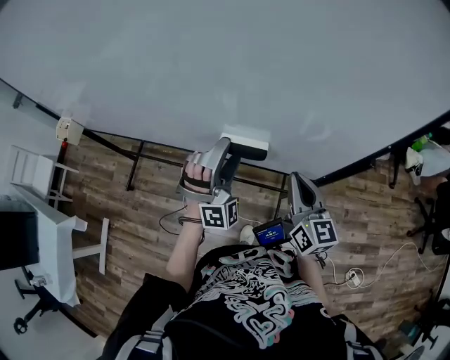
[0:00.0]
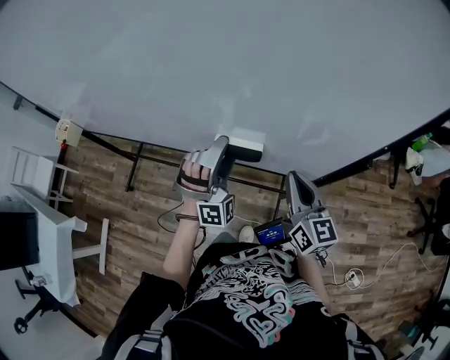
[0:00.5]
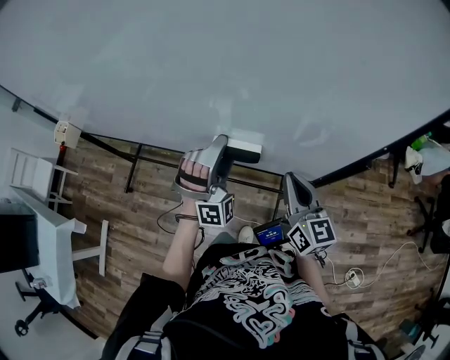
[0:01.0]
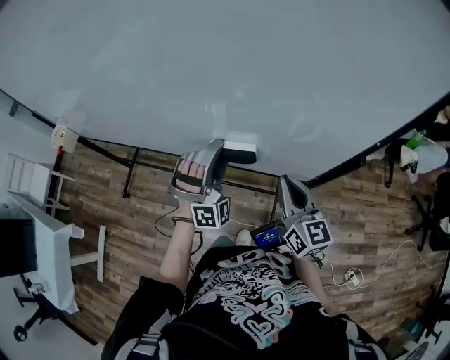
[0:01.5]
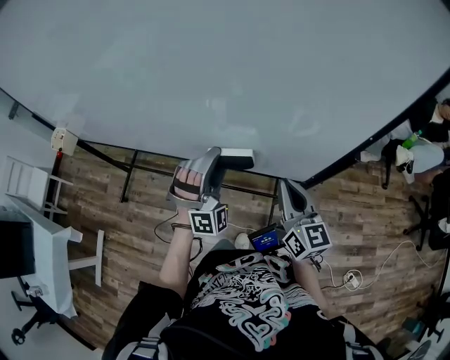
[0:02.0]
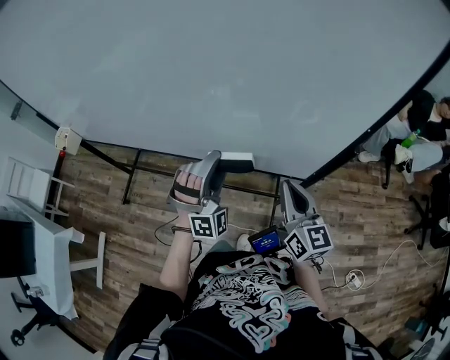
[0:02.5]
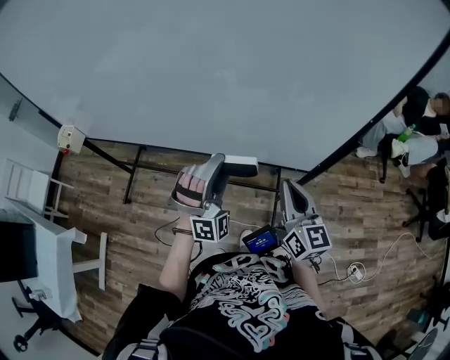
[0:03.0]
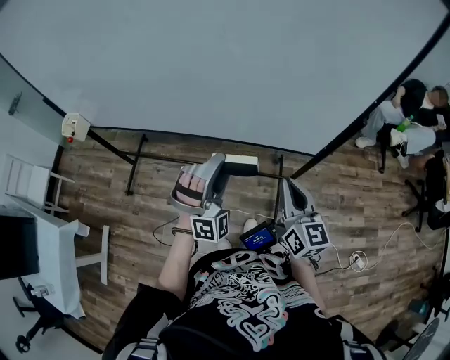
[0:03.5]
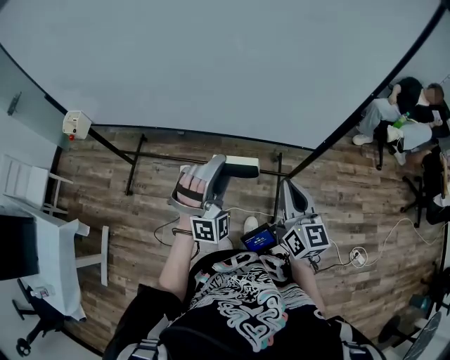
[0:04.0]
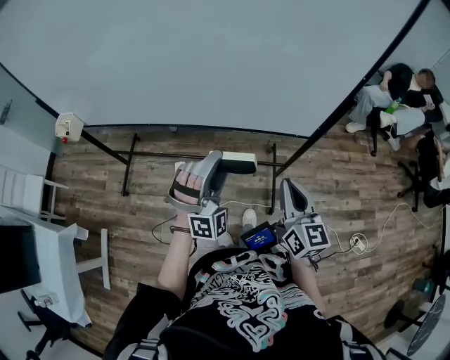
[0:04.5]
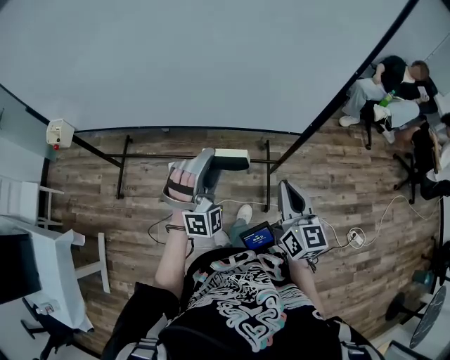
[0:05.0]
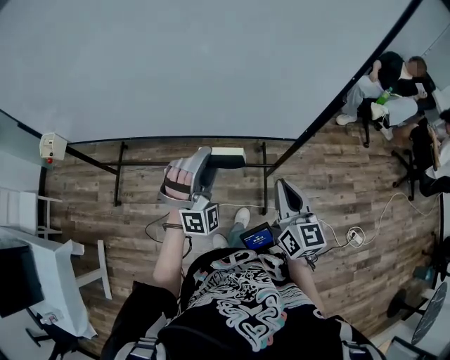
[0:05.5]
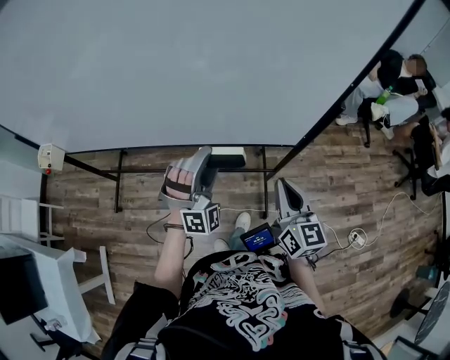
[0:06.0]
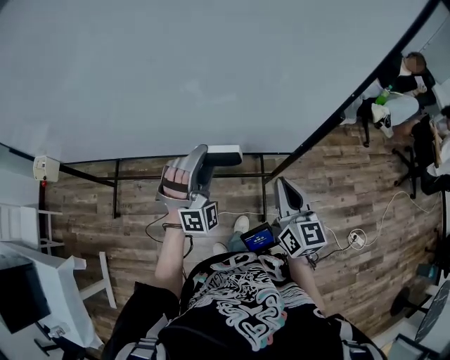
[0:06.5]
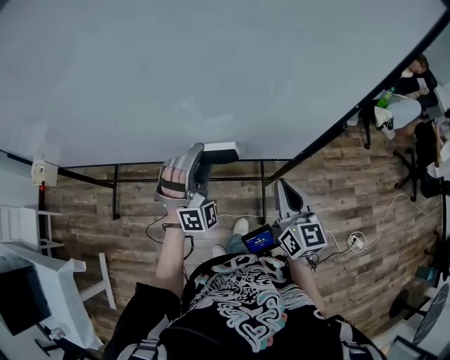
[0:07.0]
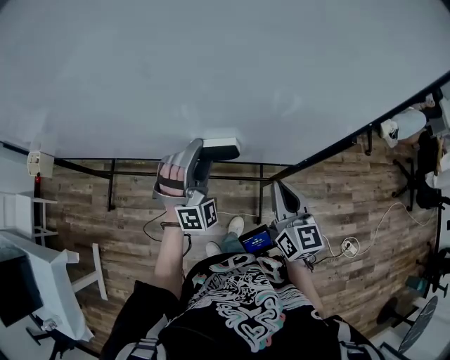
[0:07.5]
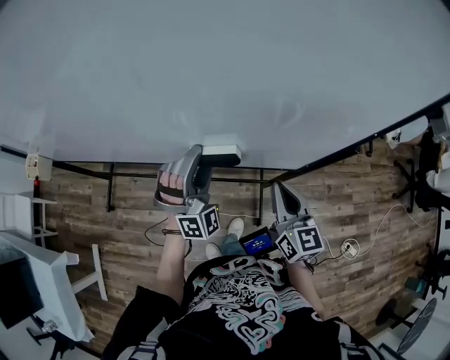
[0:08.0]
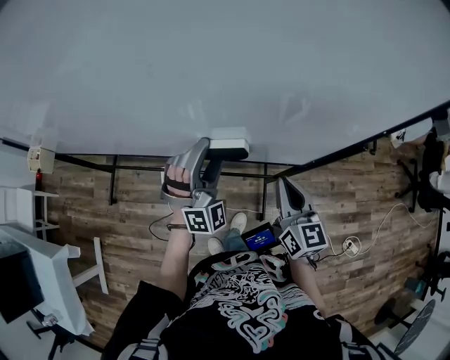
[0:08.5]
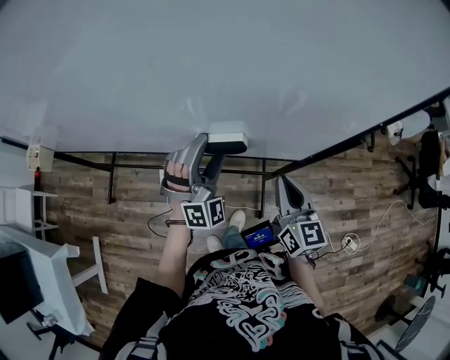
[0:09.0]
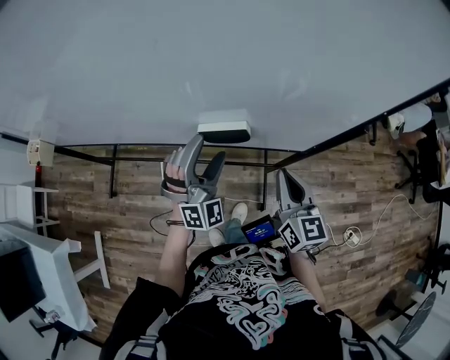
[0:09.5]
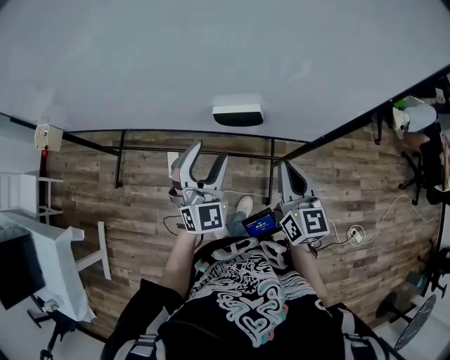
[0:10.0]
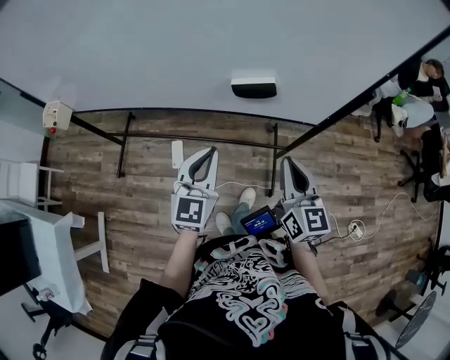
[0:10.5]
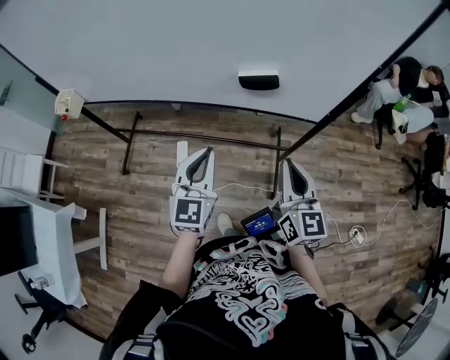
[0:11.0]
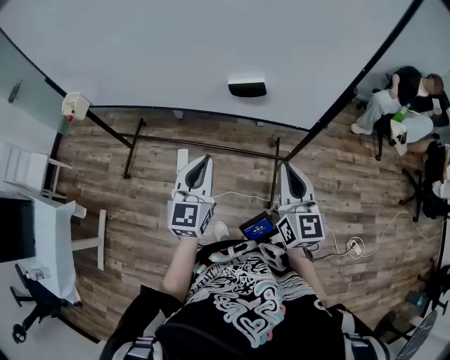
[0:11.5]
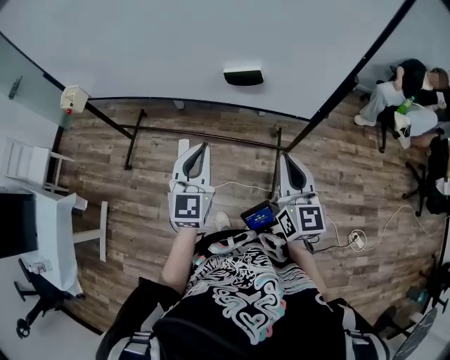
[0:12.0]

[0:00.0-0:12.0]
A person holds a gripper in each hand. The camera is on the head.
0:00.0 to 0:02.0: There are only small adjustments of the grippers.
0:02.0 to 0:04.0: The grippers both shift backward and to the left by roughly 15 cm.
0:04.0 to 0:06.0: The left gripper goes approximately 10 cm forward. The right gripper ends up roughly 5 cm from where it was.
0:06.0 to 0:08.0: Both grippers travel together forward, roughly 10 cm.
0:08.0 to 0:10.0: The right gripper moves about 5 cm, while the left gripper is displaced backward by approximately 10 cm, and turns by approximately 30 degrees.
0:10.0 to 0:12.0: The left gripper is displaced backward by about 15 cm, swivels about 30 degrees, and closes, while the right gripper travels backward and upward by roughly 15 cm.

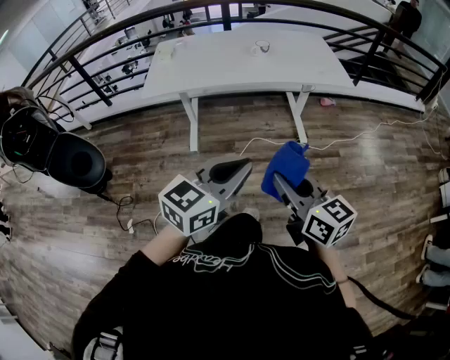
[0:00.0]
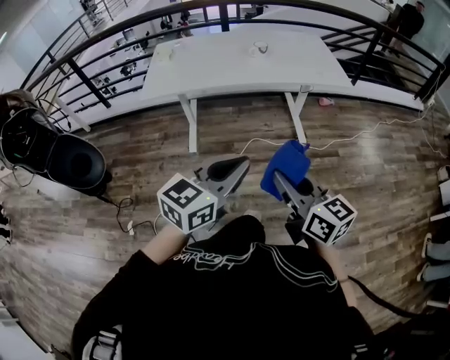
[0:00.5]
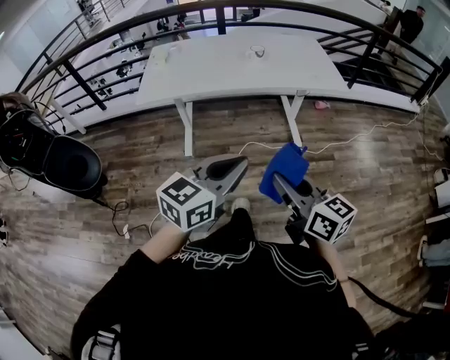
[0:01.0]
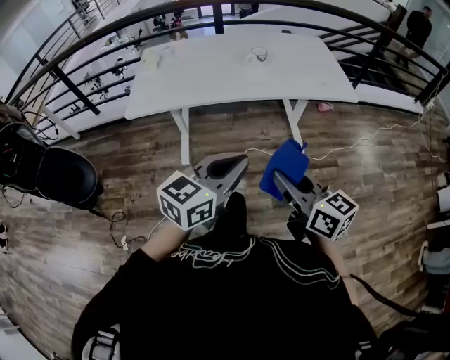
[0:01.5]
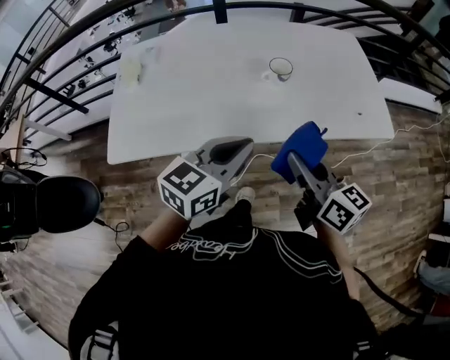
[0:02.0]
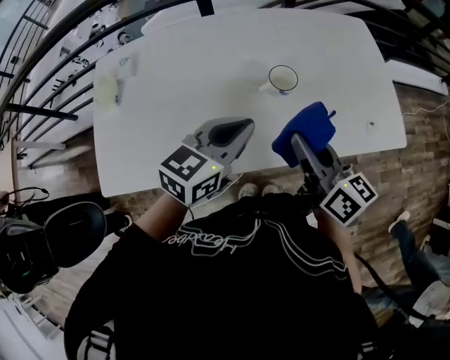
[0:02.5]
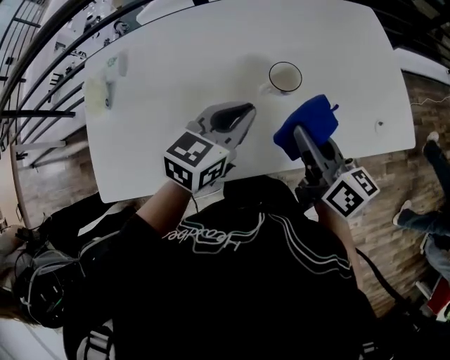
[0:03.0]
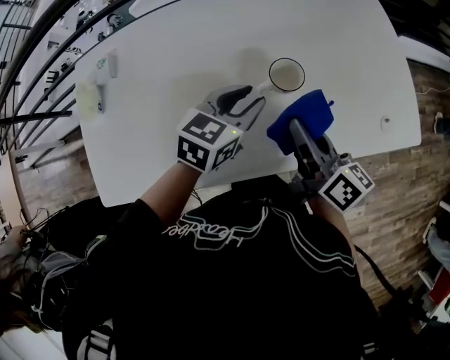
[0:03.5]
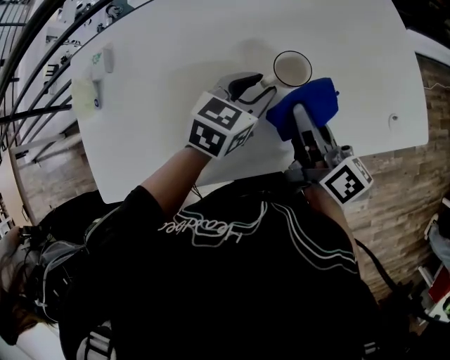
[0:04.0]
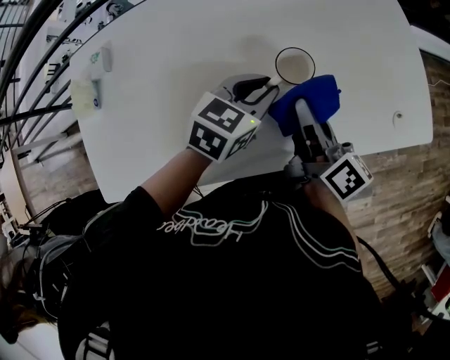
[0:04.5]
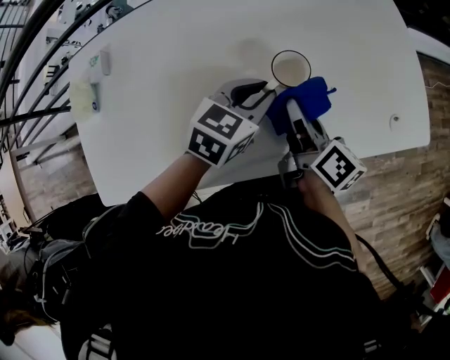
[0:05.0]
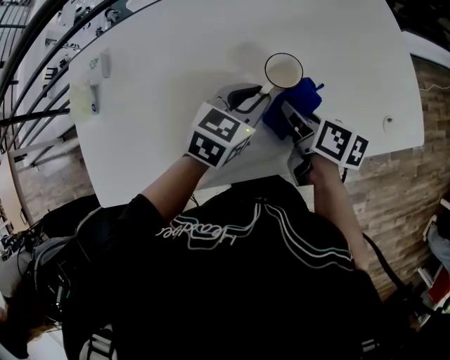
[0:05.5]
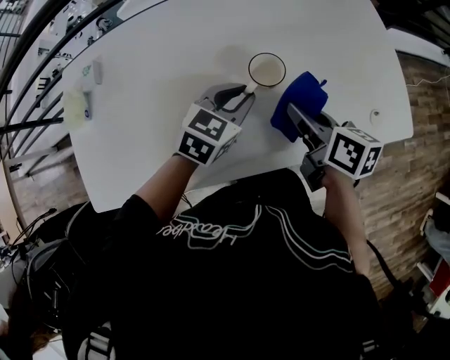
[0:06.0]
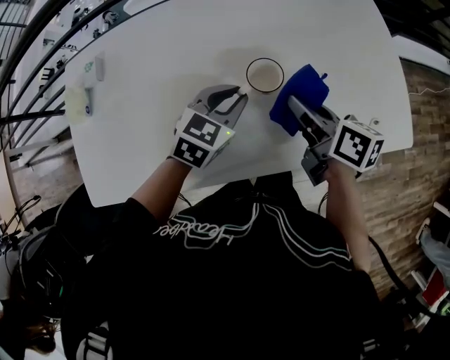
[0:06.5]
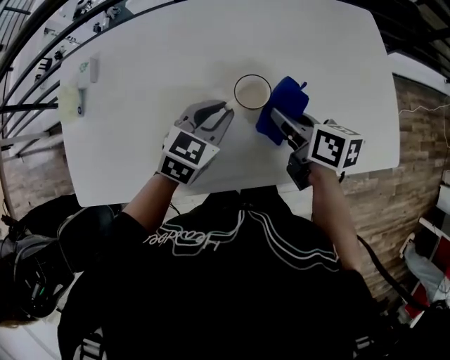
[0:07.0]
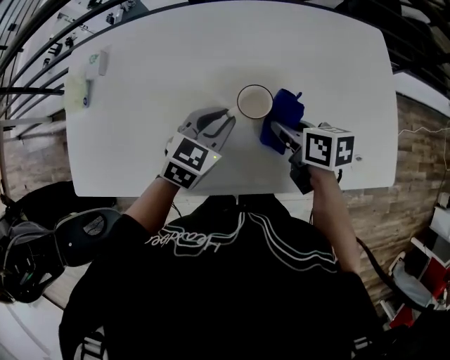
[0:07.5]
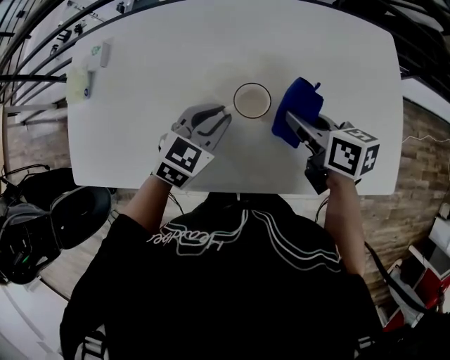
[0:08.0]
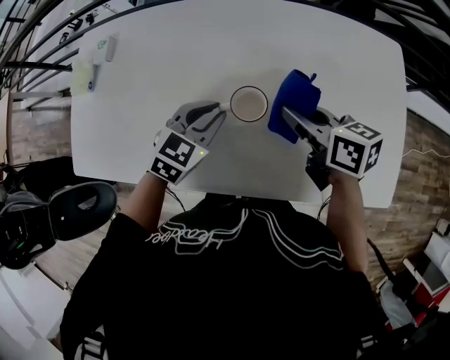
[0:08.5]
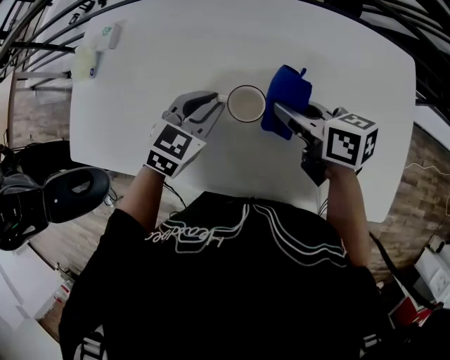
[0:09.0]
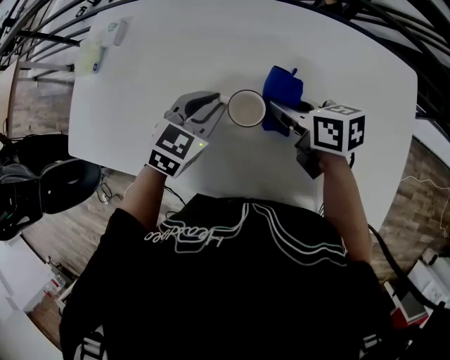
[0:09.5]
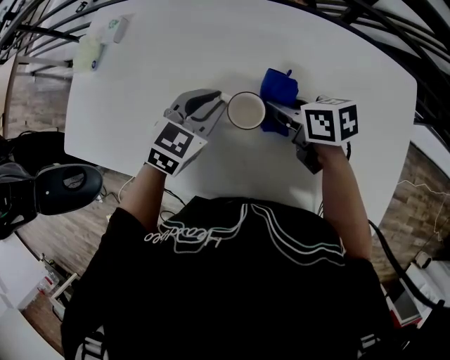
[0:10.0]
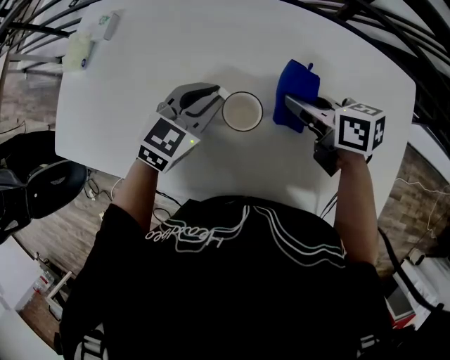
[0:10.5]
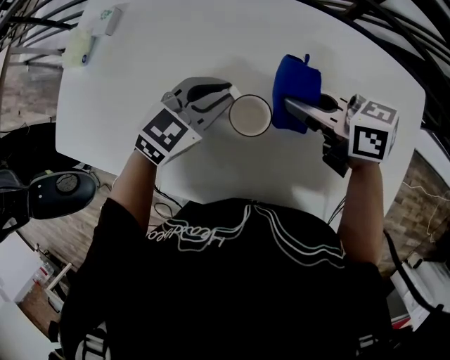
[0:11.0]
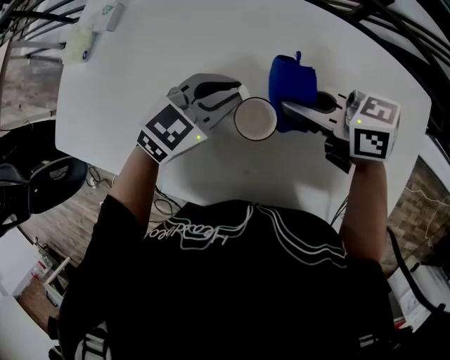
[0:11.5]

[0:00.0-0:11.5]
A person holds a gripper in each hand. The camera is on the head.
0:00.0 to 0:02.0: The two grippers travel together, forward, approximately 50 cm.
0:02.0 to 0:04.0: The two grippers go roughly 30 cm forward and downward. The right gripper changes its angle by approximately 30 degrees; the left gripper opens up.
0:04.0 to 0:06.0: The right gripper goes downward and returns, approximately 10 cm each way, and rotates about 30 degrees.
0:06.0 to 0:07.5: The right gripper ends up some 5 cm from where it was, and changes its angle by some 20 degrees.
0:07.5 to 0:09.5: The right gripper is displaced forward by roughly 10 cm, and swivels about 20 degrees.
0:09.5 to 0:11.5: The right gripper changes place by about 5 cm, and rotates roughly 30 degrees.

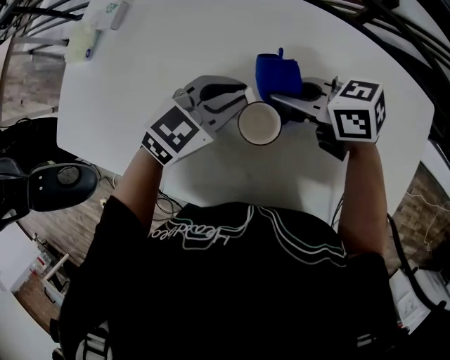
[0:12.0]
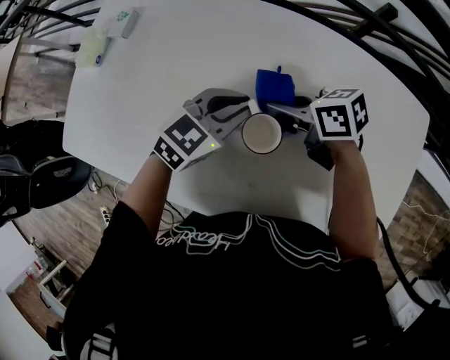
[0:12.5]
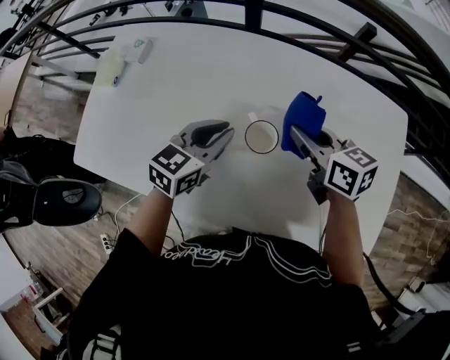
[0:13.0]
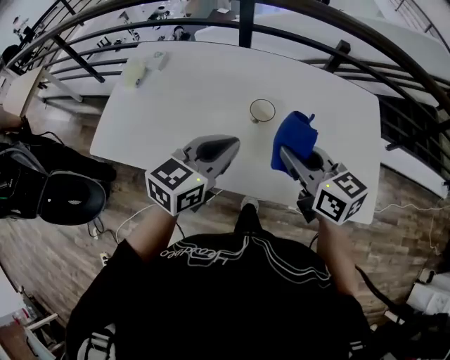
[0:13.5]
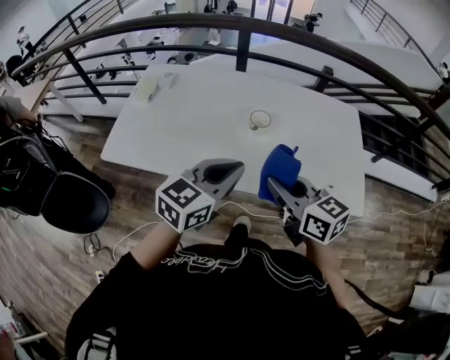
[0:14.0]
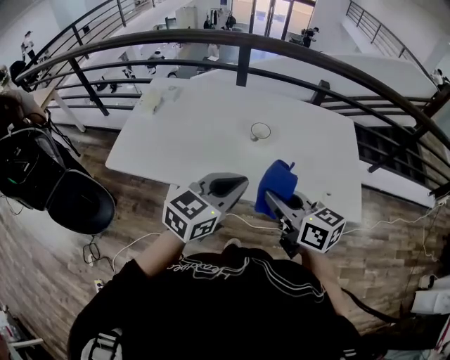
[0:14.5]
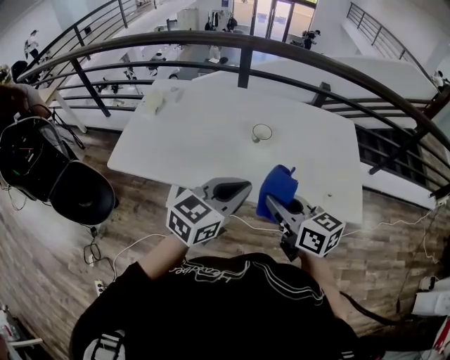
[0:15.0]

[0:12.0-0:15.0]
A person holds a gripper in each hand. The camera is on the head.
0:12.0 to 0:13.5: The right gripper moves about 30 cm, and changes its angle by approximately 40 degrees; the left gripper shifts by some 30 cm, and rotates approximately 20 degrees.
0:13.5 to 0:15.0: The two grippers go about 15 cm backward.
